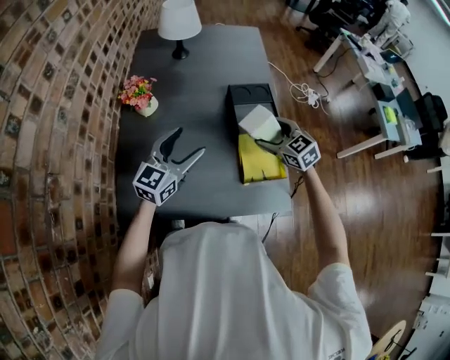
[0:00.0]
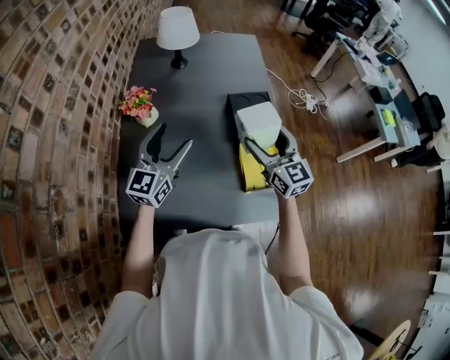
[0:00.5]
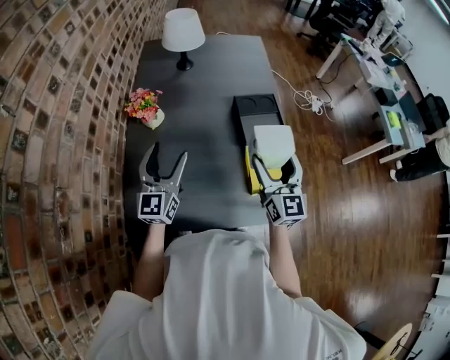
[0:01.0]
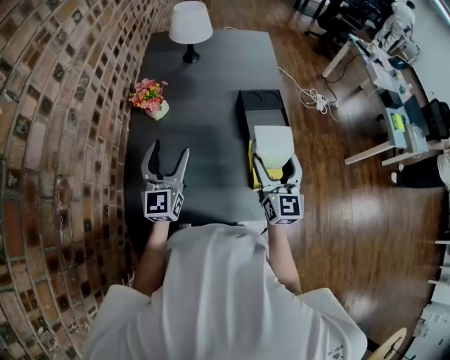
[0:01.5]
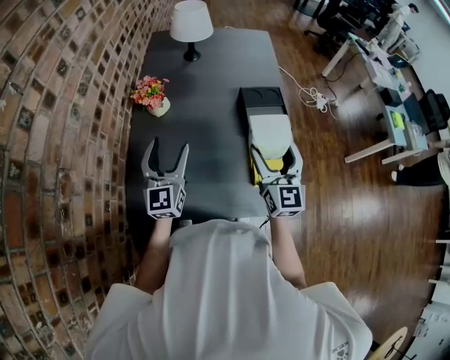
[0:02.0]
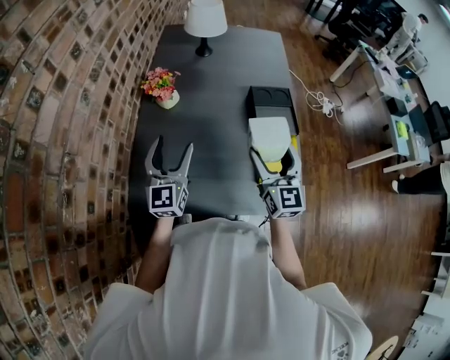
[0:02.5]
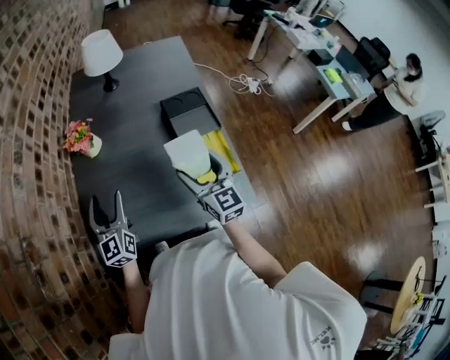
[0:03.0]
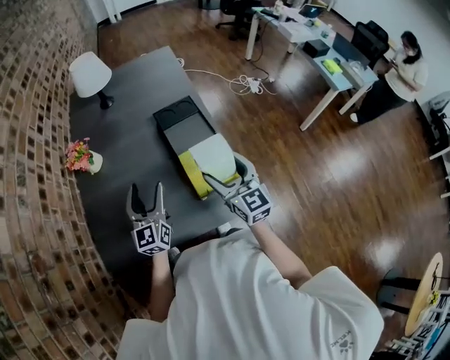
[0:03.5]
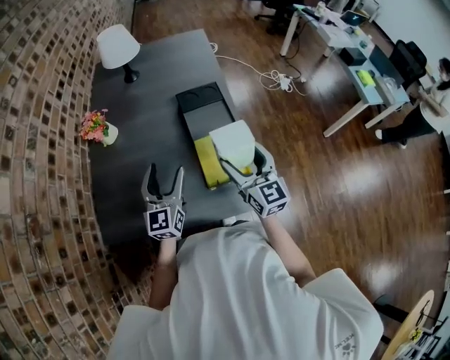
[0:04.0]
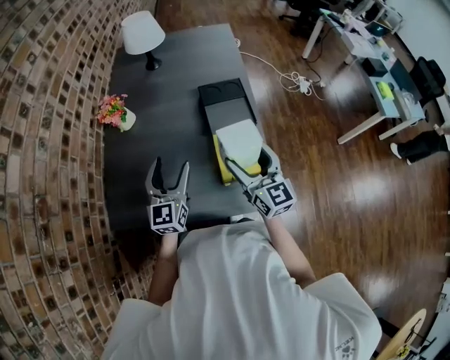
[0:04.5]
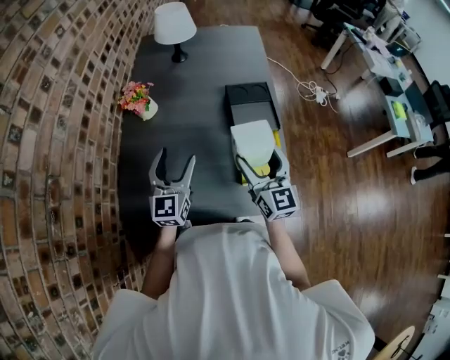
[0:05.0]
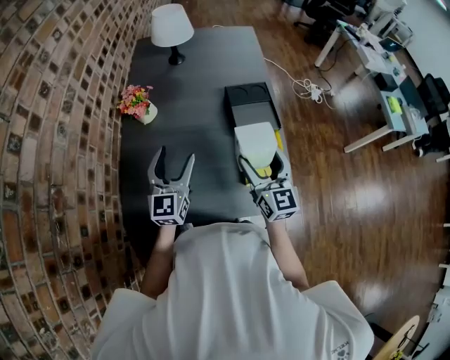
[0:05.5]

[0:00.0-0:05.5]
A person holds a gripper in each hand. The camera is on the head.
0.0 to 2.0 s: The left gripper shifts roughly 10 cm to the left, and changes its angle by about 30 degrees, while the right gripper travels upward, backward and to the left by approximately 15 cm, and tilts its fingers roughly 40 degrees upward.
2.0 to 3.5 s: The right gripper heads to the right and backward, covering some 15 cm, while the left gripper travels to the right by some 15 cm.
3.5 to 5.5 s: Both grippers move to the left, roughly 10 cm.

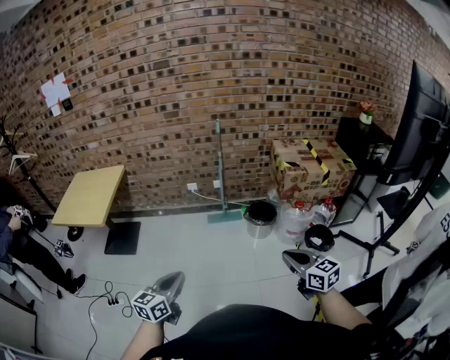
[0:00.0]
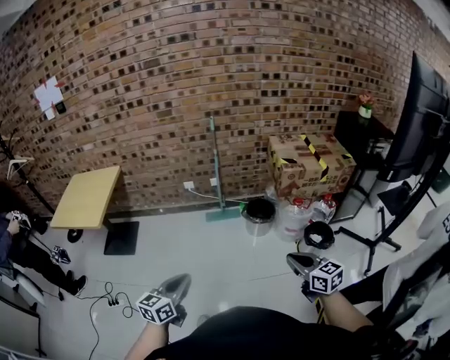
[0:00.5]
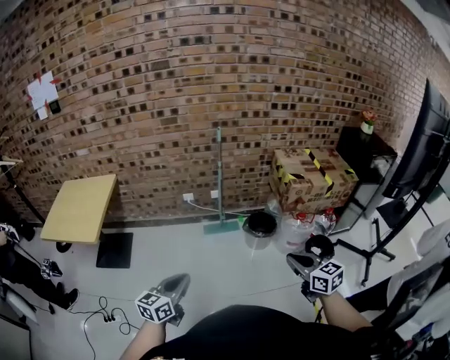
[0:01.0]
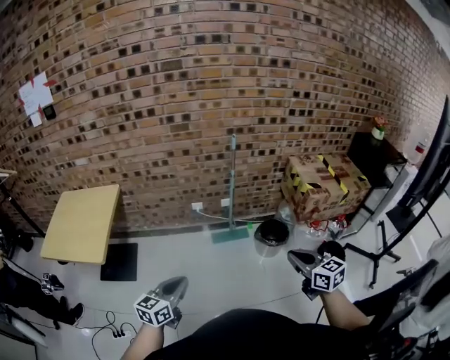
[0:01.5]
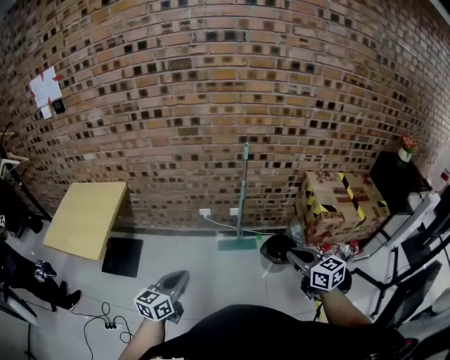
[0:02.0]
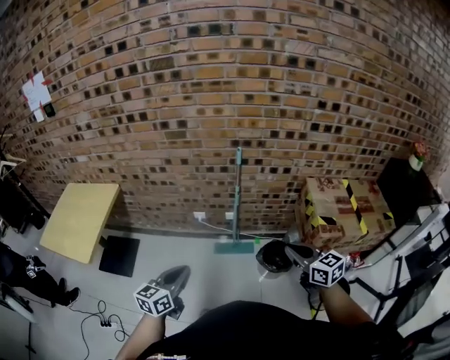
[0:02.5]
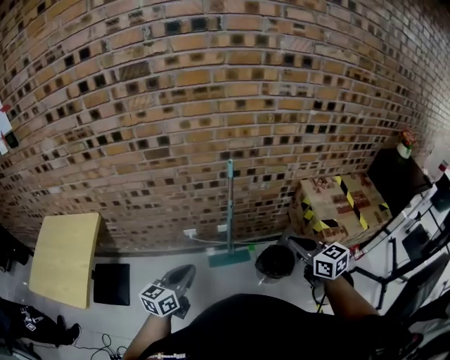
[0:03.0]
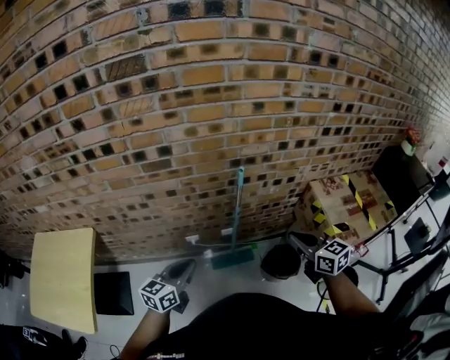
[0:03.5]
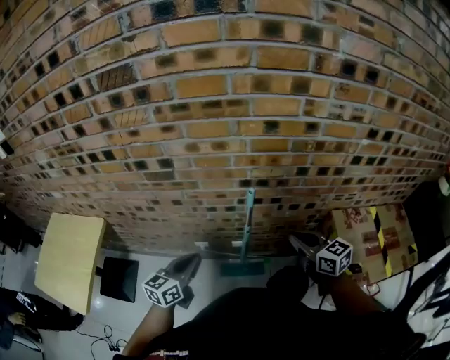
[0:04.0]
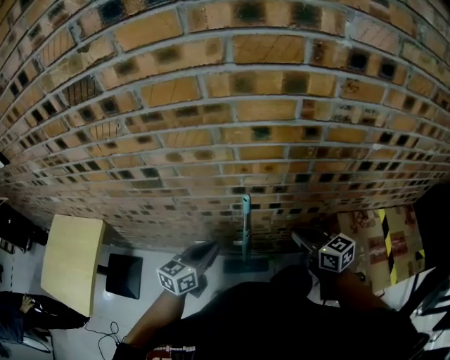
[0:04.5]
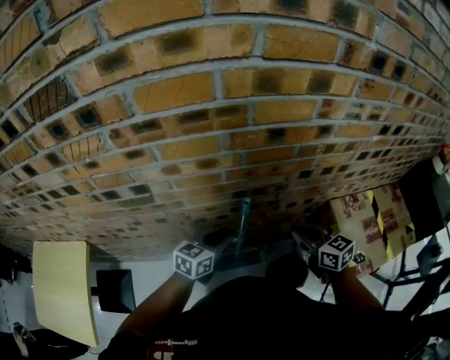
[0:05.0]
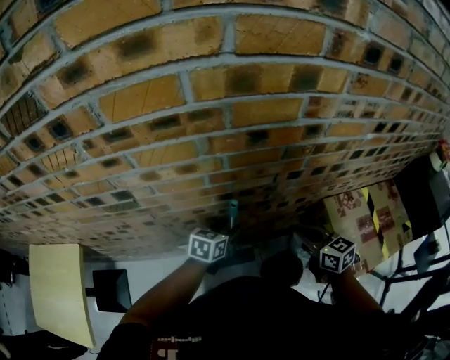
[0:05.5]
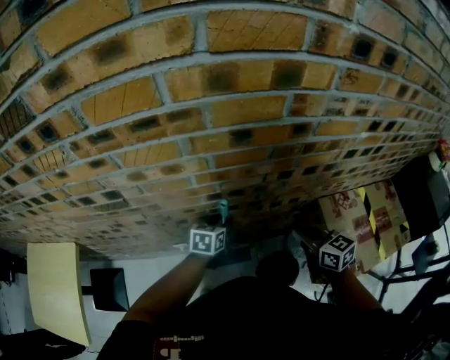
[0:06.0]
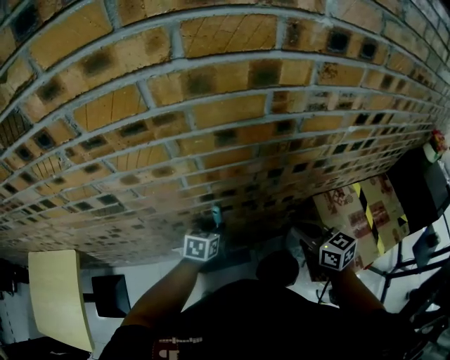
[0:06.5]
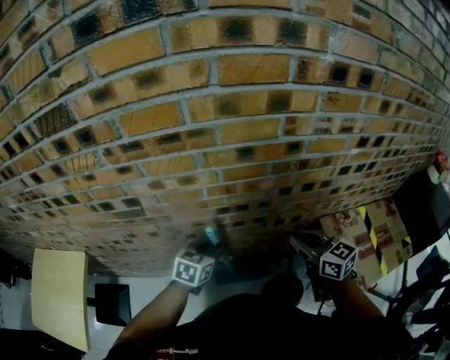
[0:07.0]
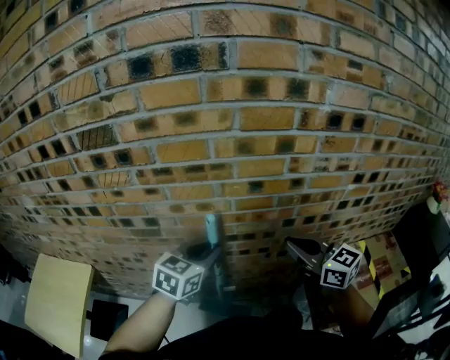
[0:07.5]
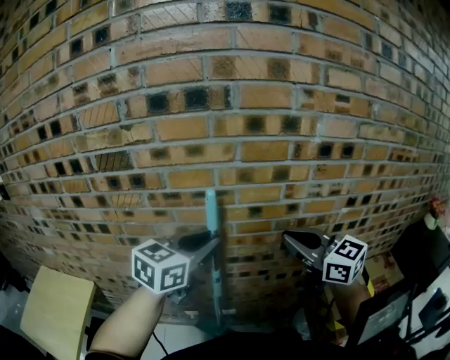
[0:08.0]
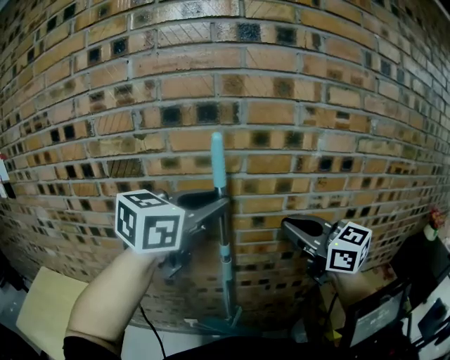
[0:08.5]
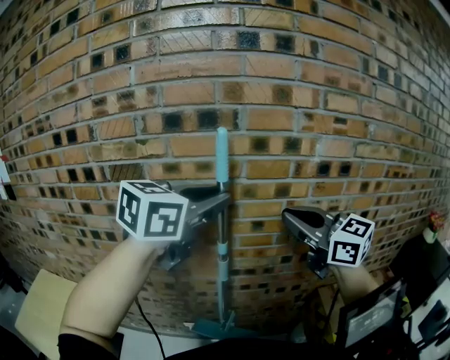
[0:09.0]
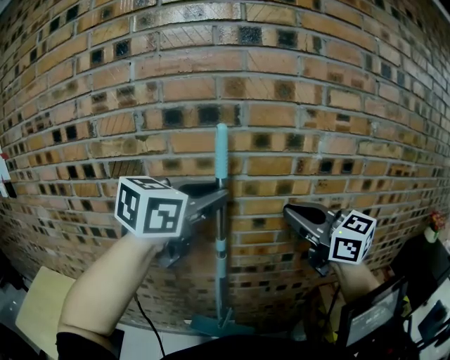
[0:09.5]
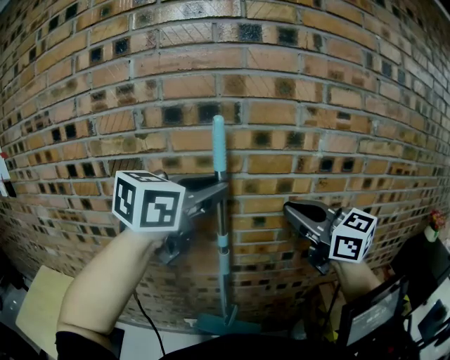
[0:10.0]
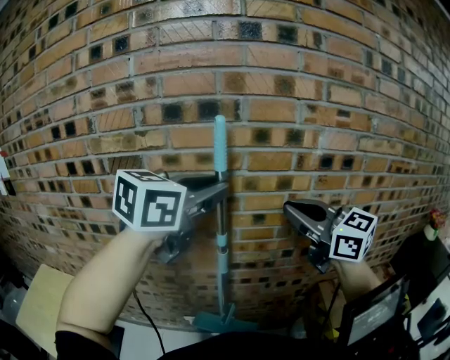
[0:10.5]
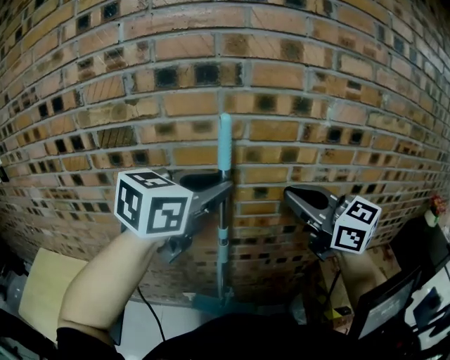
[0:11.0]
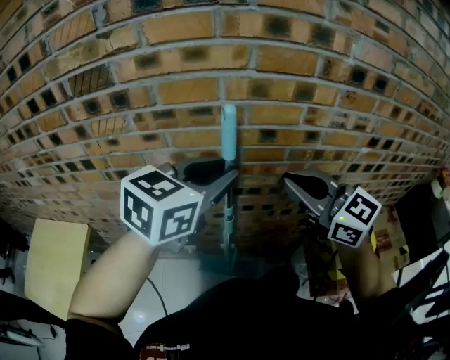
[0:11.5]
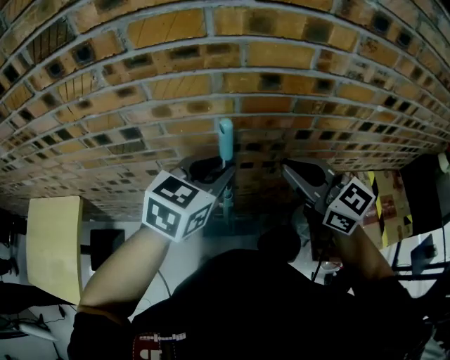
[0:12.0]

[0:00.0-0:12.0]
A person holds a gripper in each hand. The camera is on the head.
0.0 to 2.0 s: The two grippers go about 35 cm forward.
2.0 to 4.0 s: Both grippers are carried forward, roughly 40 cm.
4.0 to 6.0 s: The left gripper travels forward, to the right and downward by approximately 30 cm, changes its angle by some 30 degrees, and opens. Meanwhile the right gripper heads to the right and forward, covering some 10 cm.
6.0 to 8.0 s: The two grippers go some 35 cm upward. The right gripper changes its angle by some 30 degrees; the left gripper turns by some 30 degrees, and closes up.
8.0 to 10.0 s: The left gripper heads upward, covering approximately 15 cm; the right gripper moves upward, some 10 cm.
10.0 to 12.0 s: The grippers both shift downward by approximately 30 cm.

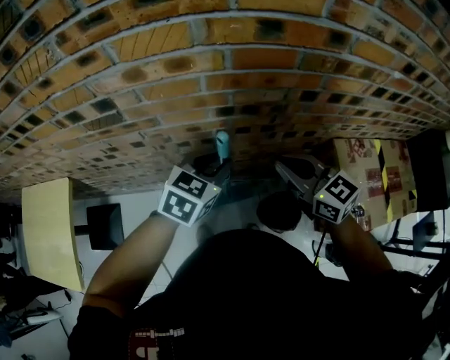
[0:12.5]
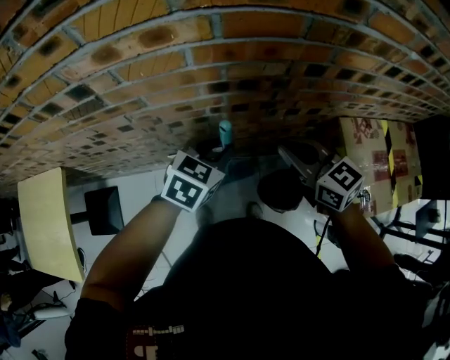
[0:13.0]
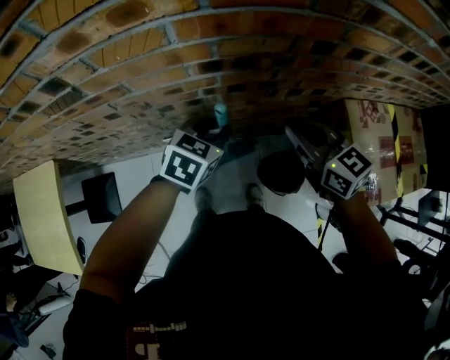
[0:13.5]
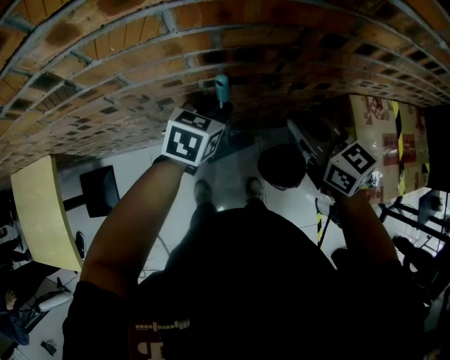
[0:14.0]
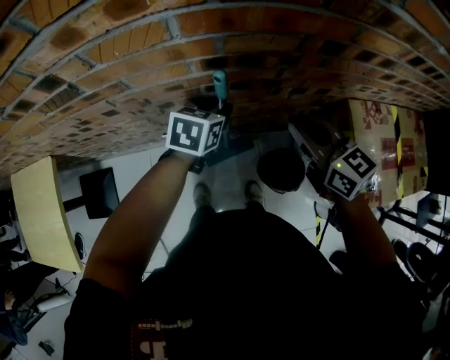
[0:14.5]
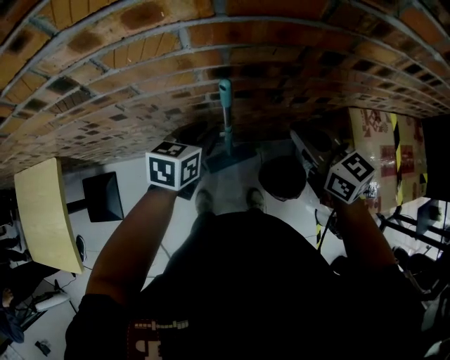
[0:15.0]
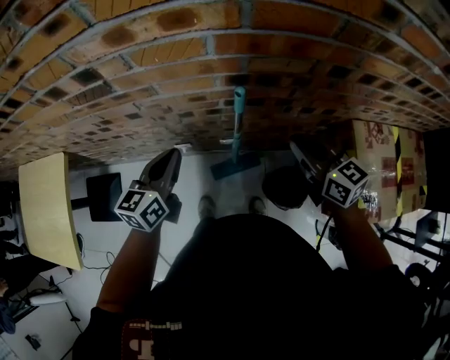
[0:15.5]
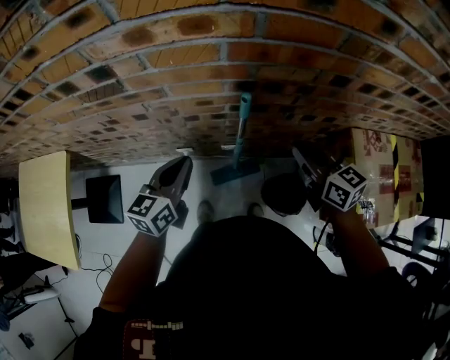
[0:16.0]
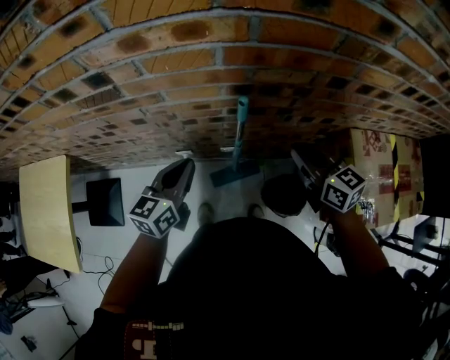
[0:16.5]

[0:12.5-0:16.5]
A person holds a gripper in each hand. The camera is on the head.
12.5 to 14.5 s: The left gripper travels downward and forward by roughly 15 cm. Meanwhile the right gripper is displaced downward by roughly 5 cm.
14.5 to 16.5 s: The left gripper shifts some 20 cm to the left, backward and upward, rotates roughly 30 degrees, and closes its fingers.

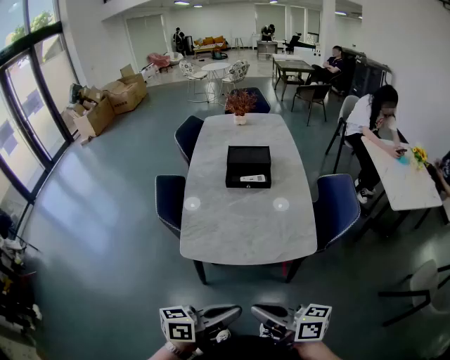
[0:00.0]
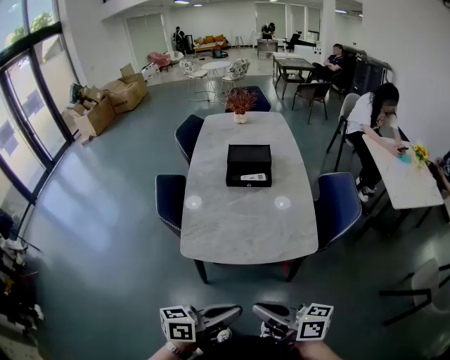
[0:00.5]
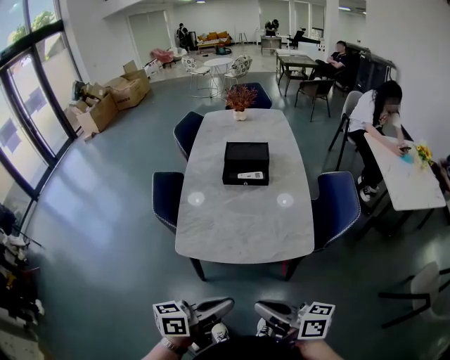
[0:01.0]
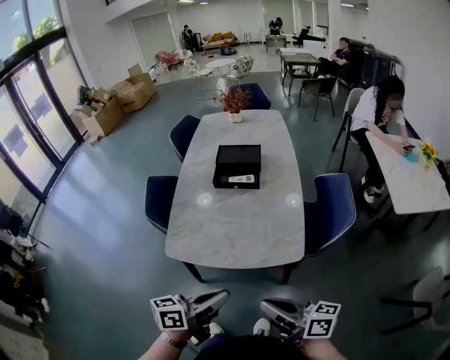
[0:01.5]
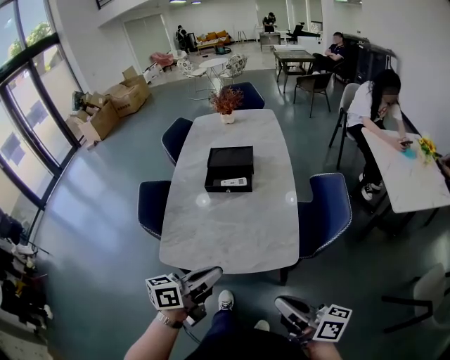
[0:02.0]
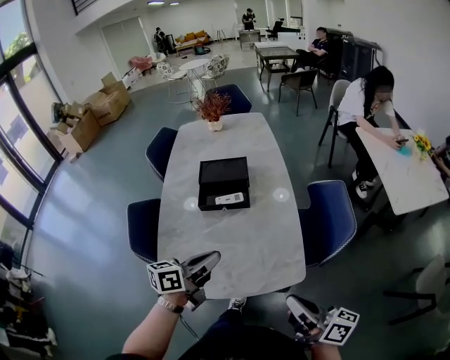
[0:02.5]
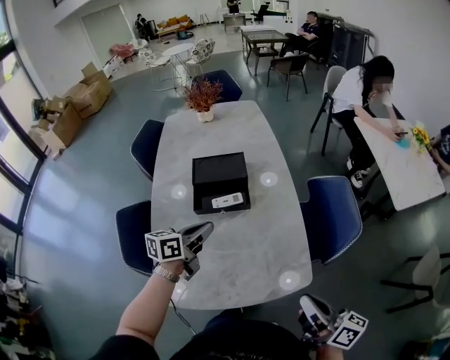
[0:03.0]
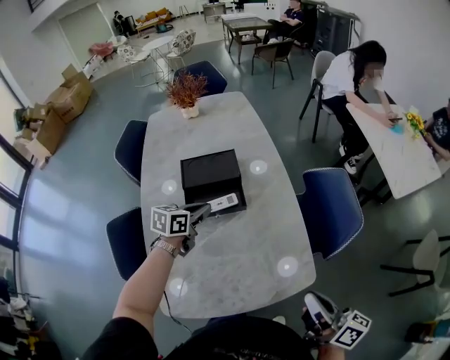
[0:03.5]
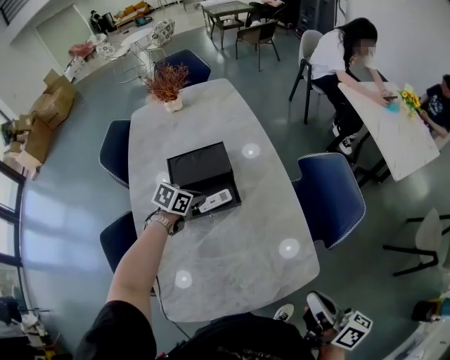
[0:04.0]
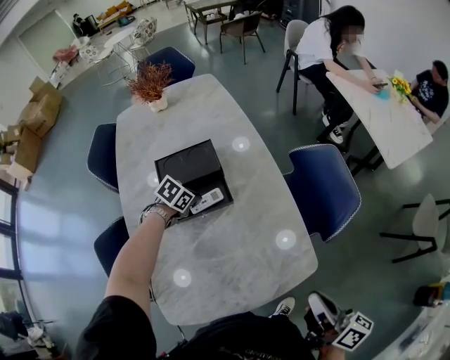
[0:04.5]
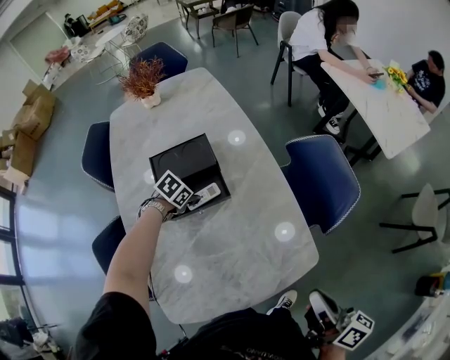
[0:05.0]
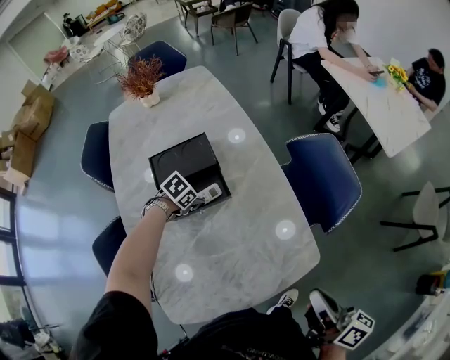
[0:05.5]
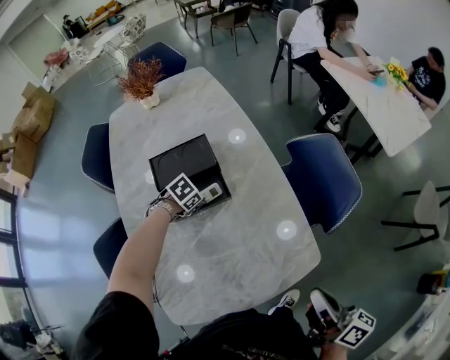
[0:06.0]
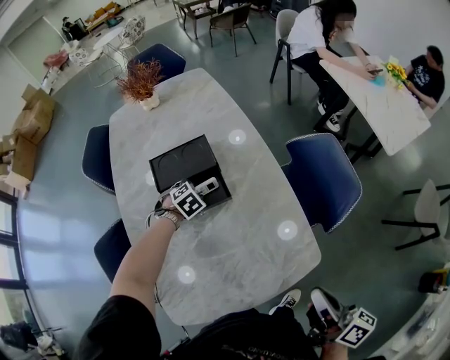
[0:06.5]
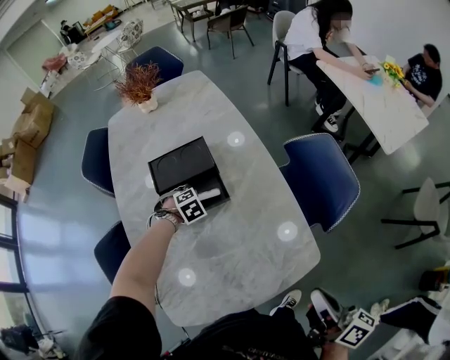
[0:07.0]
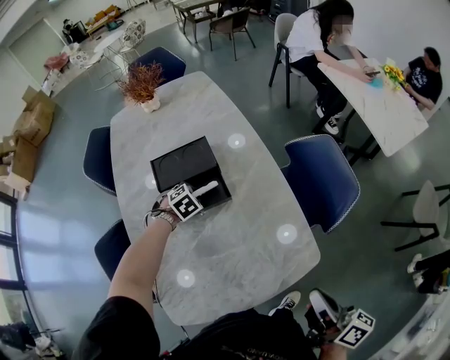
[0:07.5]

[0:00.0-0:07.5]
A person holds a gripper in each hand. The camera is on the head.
0.0 to 2.0 s: The right gripper travels to the right by some 20 cm; the left gripper shifts about 20 cm forward and to the right.
2.0 to 4.0 s: The left gripper shifts by about 50 cm, and tilts its fingers some 40 degrees downward, while the right gripper changes place by approximately 15 cm, and swivels about 40 degrees.
4.0 to 5.5 s: The left gripper goes approximately 10 cm downward, swivels about 30 degrees, and opens its fingers.
5.5 to 7.5 s: The left gripper changes its angle by some 30 degrees.
